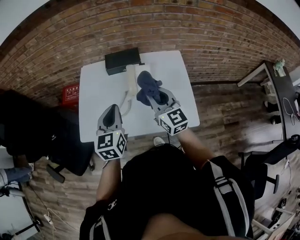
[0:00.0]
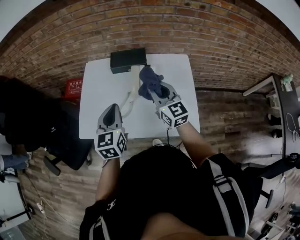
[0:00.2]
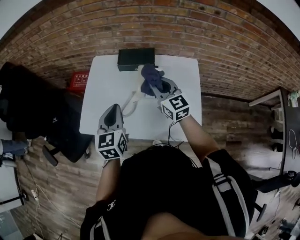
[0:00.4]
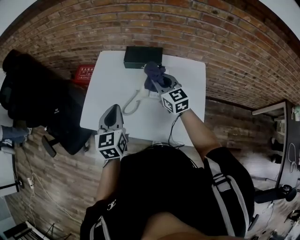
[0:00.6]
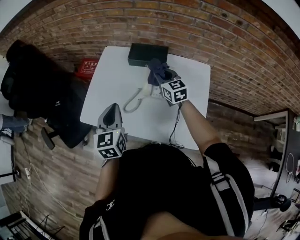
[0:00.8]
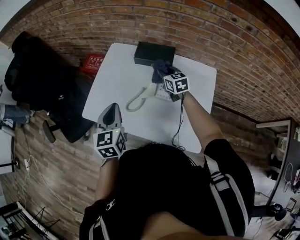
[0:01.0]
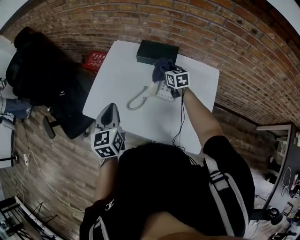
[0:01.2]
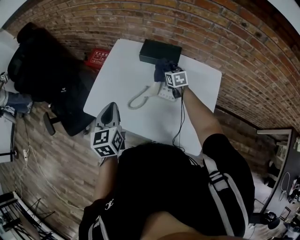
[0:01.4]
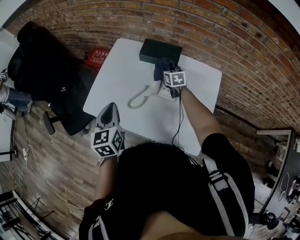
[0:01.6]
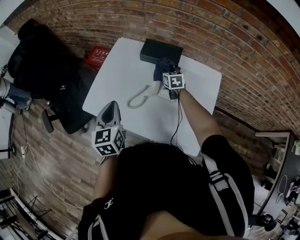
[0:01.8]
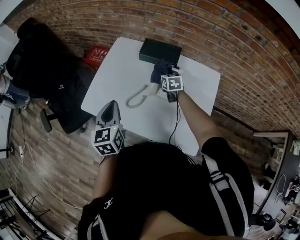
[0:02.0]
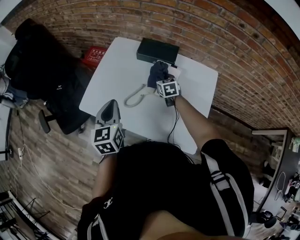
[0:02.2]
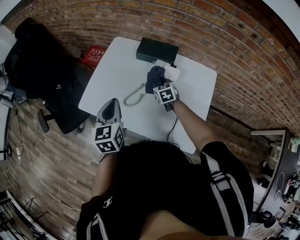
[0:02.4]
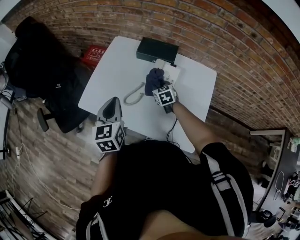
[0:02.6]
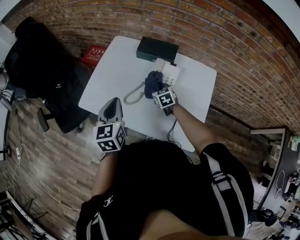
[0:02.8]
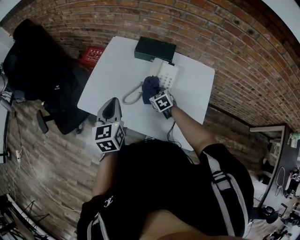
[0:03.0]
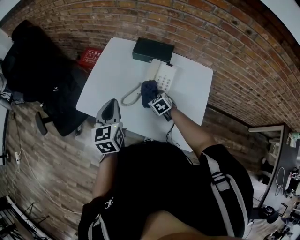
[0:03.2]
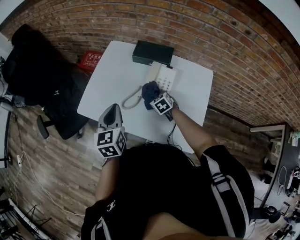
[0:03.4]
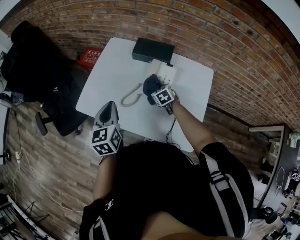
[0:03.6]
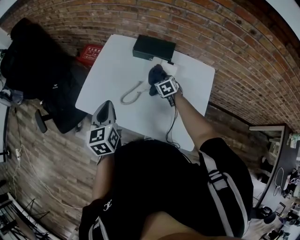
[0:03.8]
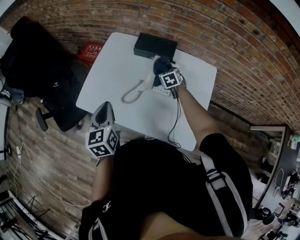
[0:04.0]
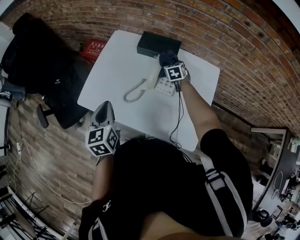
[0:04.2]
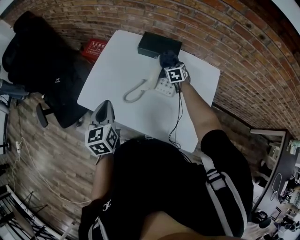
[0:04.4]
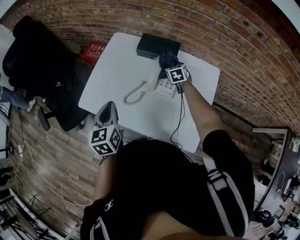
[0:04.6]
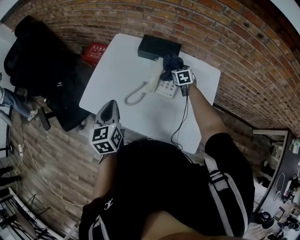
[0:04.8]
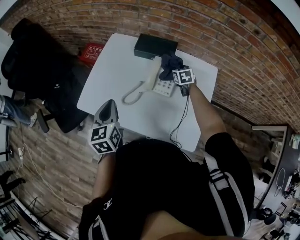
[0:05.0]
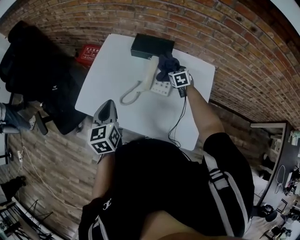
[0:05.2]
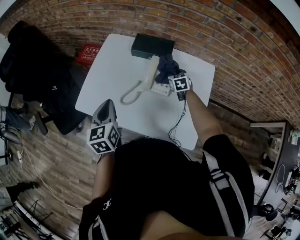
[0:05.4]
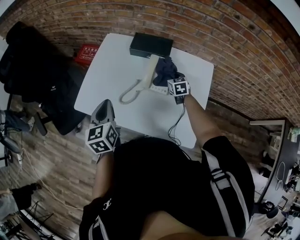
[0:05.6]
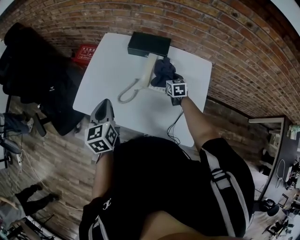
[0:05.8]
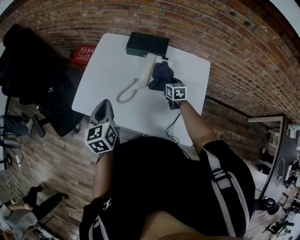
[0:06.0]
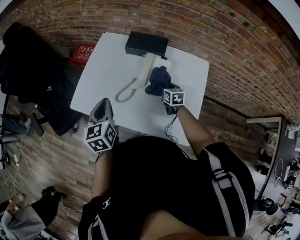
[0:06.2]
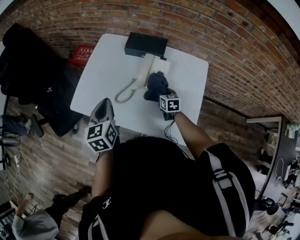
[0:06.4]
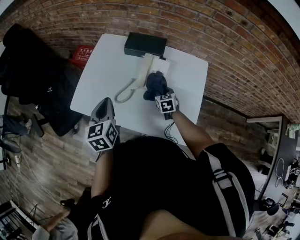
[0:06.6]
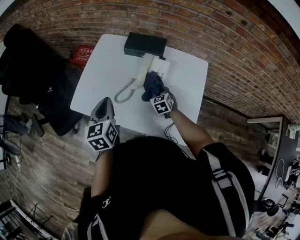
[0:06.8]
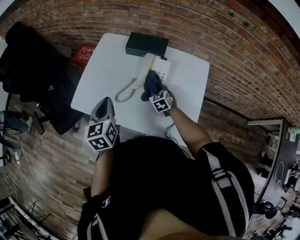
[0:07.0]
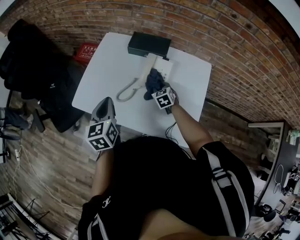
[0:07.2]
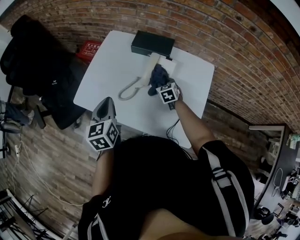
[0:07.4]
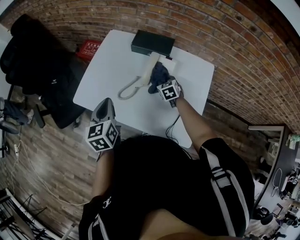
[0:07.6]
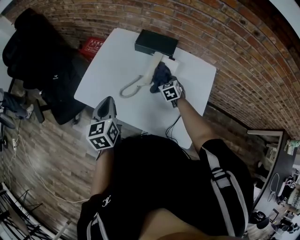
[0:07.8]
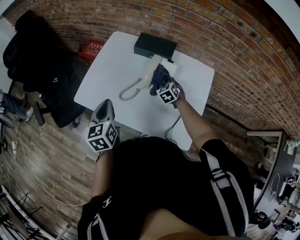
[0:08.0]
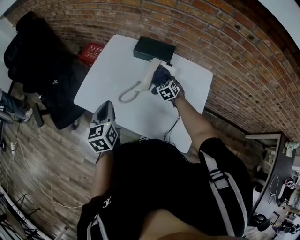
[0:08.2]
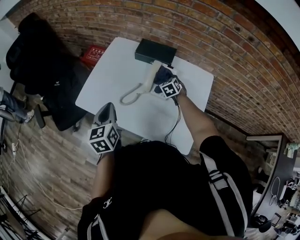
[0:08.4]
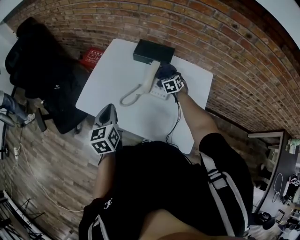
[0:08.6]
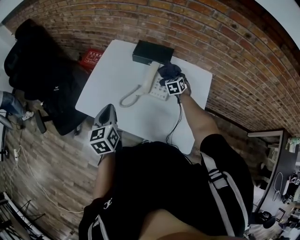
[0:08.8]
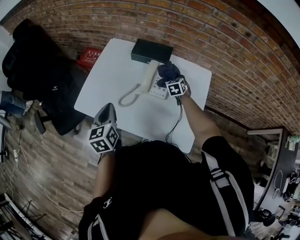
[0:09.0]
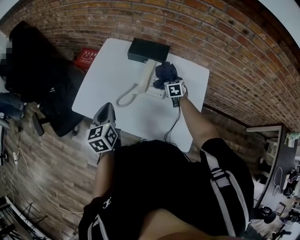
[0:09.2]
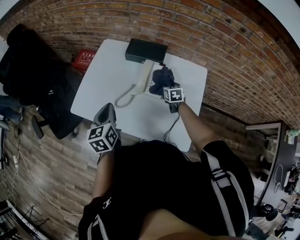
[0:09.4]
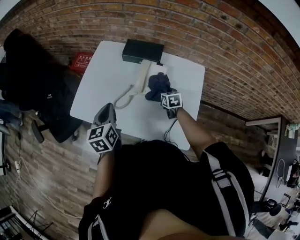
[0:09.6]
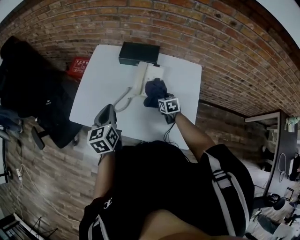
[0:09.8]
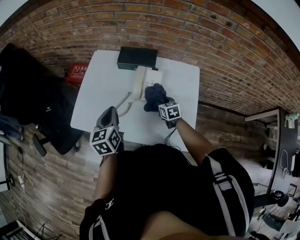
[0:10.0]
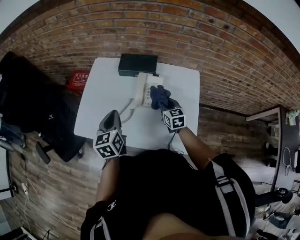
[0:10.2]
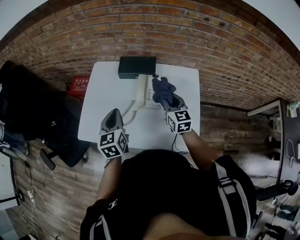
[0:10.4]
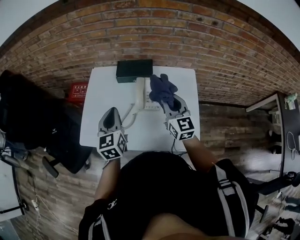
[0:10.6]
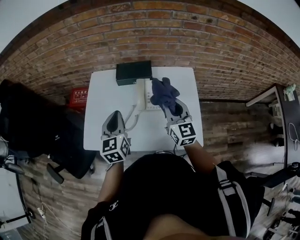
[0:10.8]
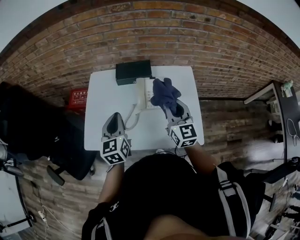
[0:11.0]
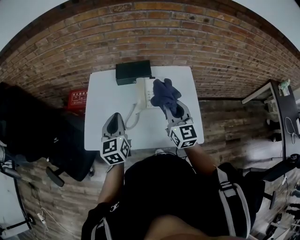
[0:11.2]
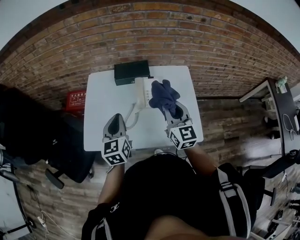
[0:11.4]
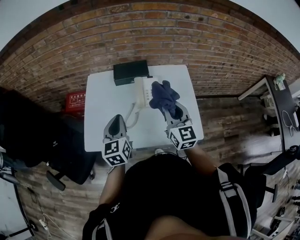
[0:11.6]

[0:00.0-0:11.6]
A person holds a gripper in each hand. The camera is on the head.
0:00.0 to 0:01.4: The left gripper ends up approximately 5 cm from where it was, and rotates roughly 30 degrees. The right gripper is displaced forward and downward by some 35 cm, and points its fingers some 30 degrees further downward.
0:01.4 to 0:02.8: The right gripper heads backward and to the left, covering approximately 15 cm.
0:02.8 to 0:04.4: The right gripper goes roughly 15 cm forward and to the right.
0:04.4 to 0:05.8: The right gripper is displaced backward by roughly 10 cm.
0:05.8 to 0:07.2: The right gripper shifts about 10 cm to the left and backward, and turns by roughly 20 degrees.
0:07.2 to 0:08.8: The right gripper is displaced to the right and forward by some 15 cm.
0:08.8 to 0:10.2: The right gripper travels backward and upward by some 15 cm, and rotates some 30 degrees. The left gripper shifts about 5 cm forward.
0:10.2 to 0:11.6: The right gripper travels upward and backward by about 25 cm, and changes its angle by about 30 degrees, while the left gripper moves approximately 5 cm.

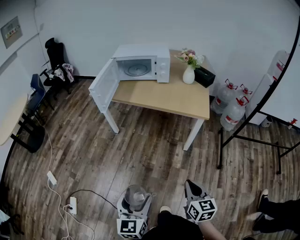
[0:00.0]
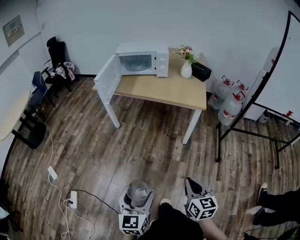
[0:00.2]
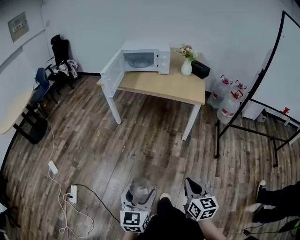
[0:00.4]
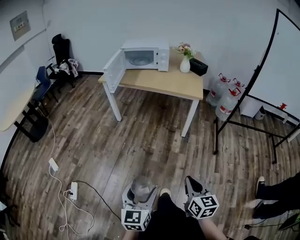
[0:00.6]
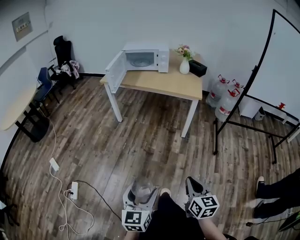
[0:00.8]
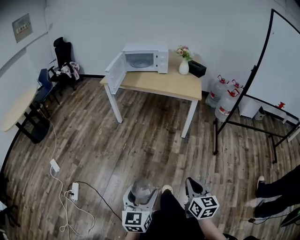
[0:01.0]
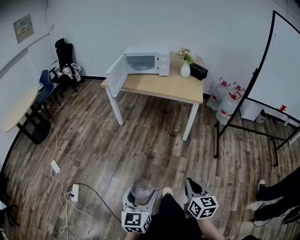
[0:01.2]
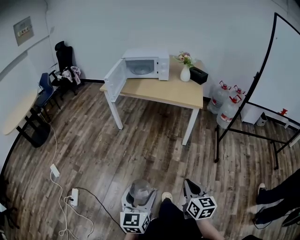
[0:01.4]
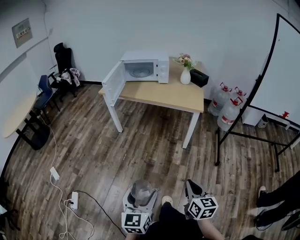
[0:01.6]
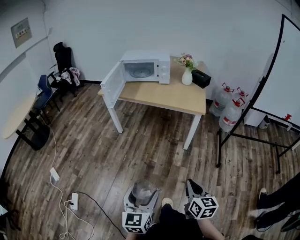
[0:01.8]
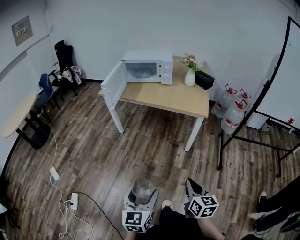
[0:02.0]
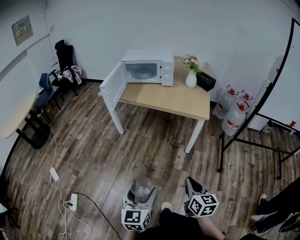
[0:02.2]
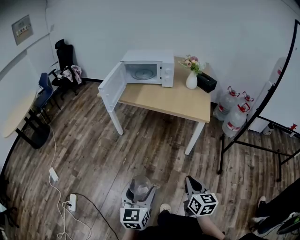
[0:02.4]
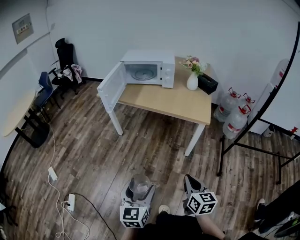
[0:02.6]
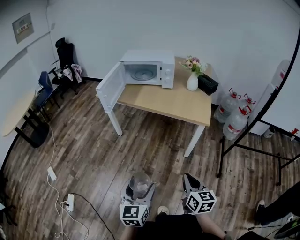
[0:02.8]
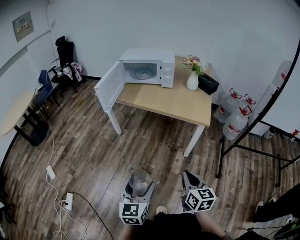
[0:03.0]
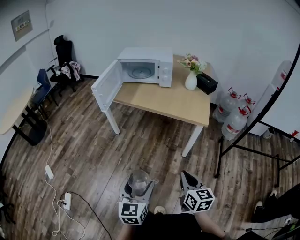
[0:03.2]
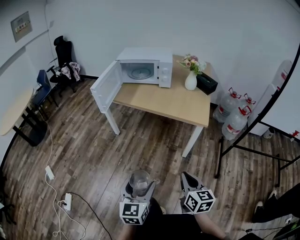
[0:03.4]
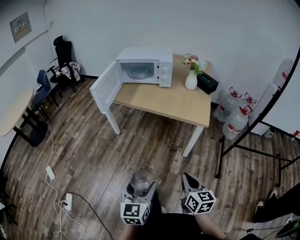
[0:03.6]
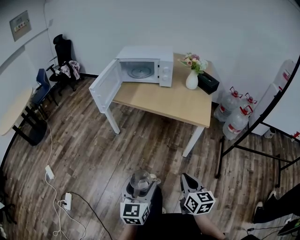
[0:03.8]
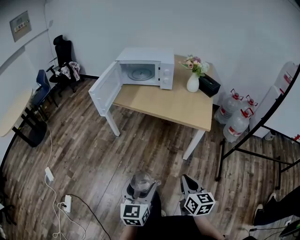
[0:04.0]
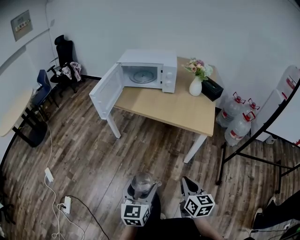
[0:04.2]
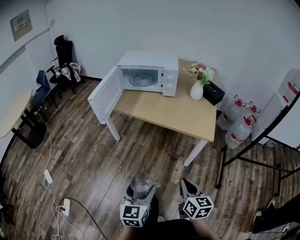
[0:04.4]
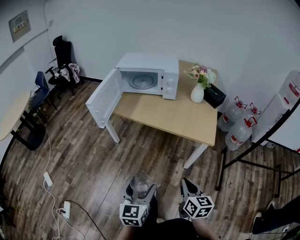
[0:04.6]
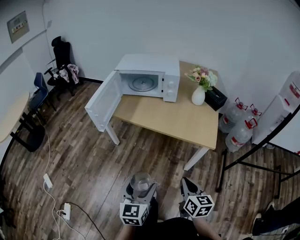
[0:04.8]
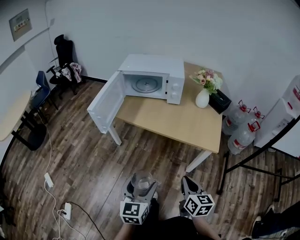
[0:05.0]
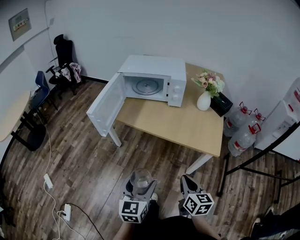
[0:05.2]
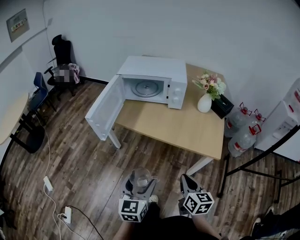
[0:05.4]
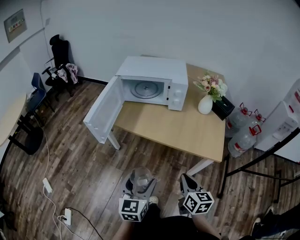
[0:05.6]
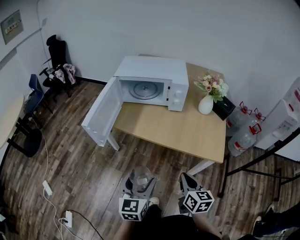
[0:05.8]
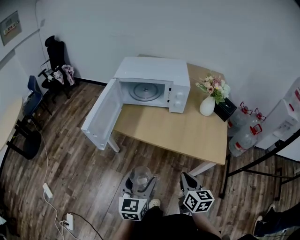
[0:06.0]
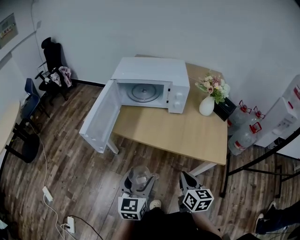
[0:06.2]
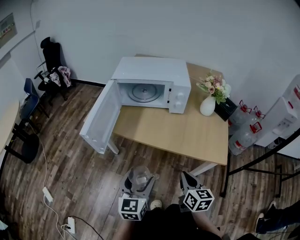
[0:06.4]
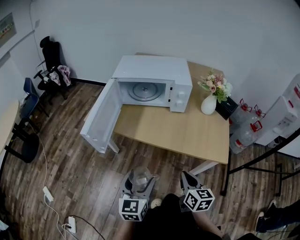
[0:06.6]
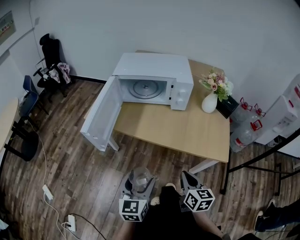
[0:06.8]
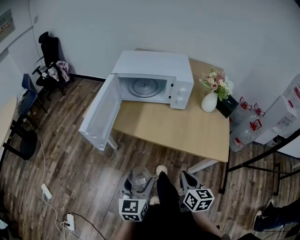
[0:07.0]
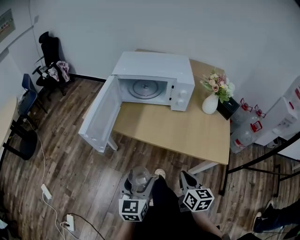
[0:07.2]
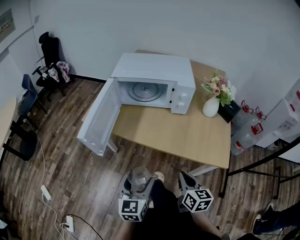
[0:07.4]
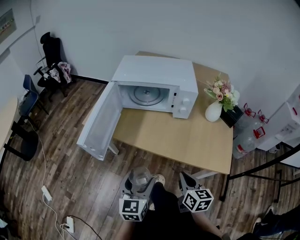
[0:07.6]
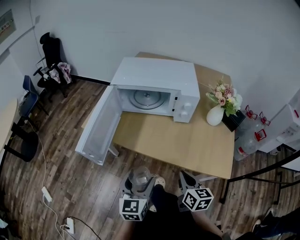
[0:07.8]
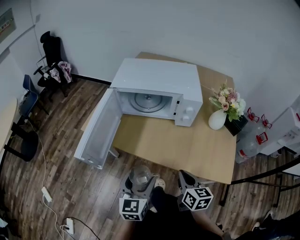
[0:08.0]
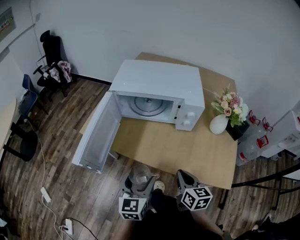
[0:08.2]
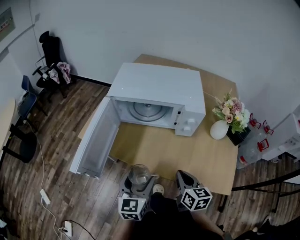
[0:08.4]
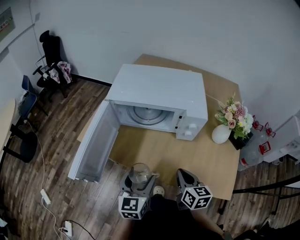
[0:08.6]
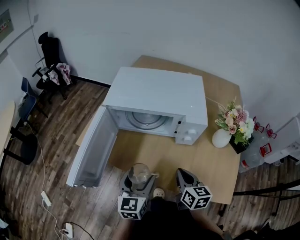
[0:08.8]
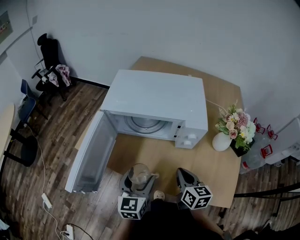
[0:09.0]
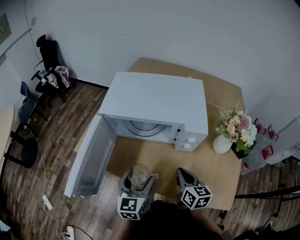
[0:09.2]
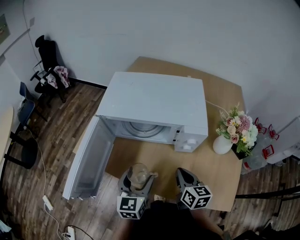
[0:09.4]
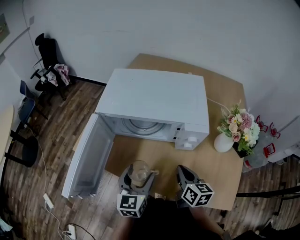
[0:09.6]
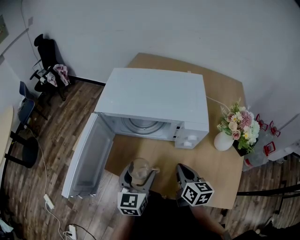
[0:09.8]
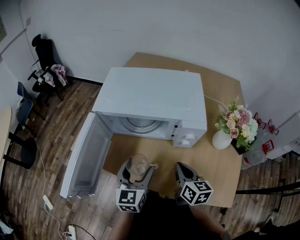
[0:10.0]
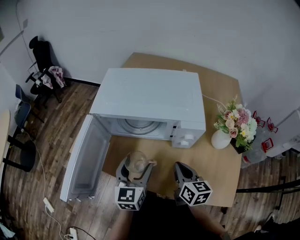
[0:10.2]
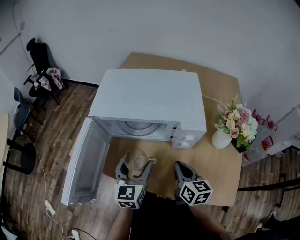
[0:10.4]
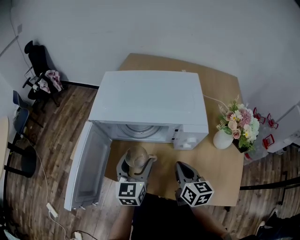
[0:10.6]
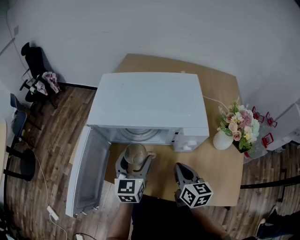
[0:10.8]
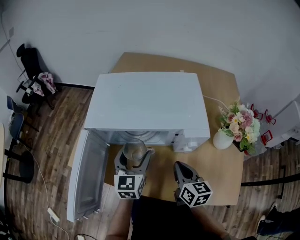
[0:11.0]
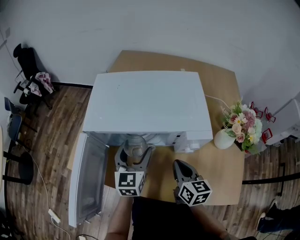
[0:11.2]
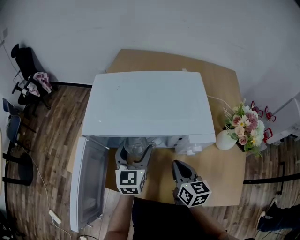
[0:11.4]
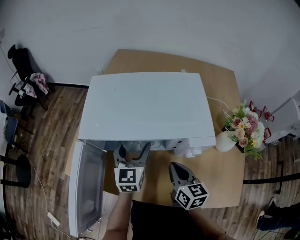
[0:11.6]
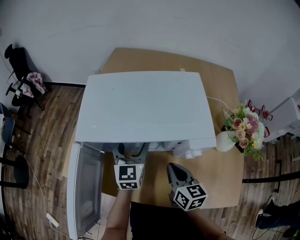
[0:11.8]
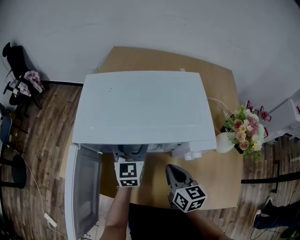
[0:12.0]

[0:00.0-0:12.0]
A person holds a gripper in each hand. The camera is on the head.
0:00.0 to 0:01.6: Both grippers move backward, approximately 15 cm.
0:01.6 to 0:03.0: The grippers both shift forward by some 20 cm.
0:03.0 to 0:04.4: Both grippers travel together forward, approximately 10 cm.
0:04.4 to 0:06.0: The two grippers go approximately 20 cm forward.
0:06.0 to 0:07.6: The grippers both shift forward by about 10 cm.
0:07.6 to 0:09.0: The grippers both shift forward by about 20 cm.
0:09.0 to 0:10.4: The left gripper moves forward, some 10 cm.
0:10.4 to 0:12.0: The left gripper is displaced forward by about 20 cm, while the right gripper goes roughly 5 cm forward.
